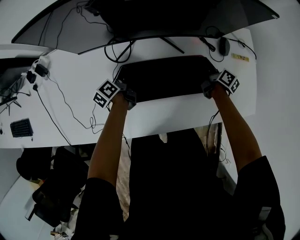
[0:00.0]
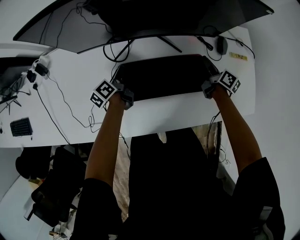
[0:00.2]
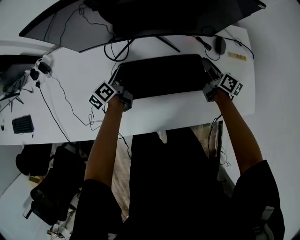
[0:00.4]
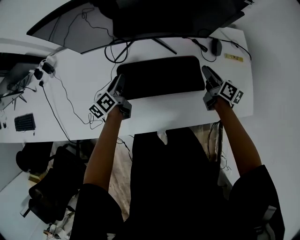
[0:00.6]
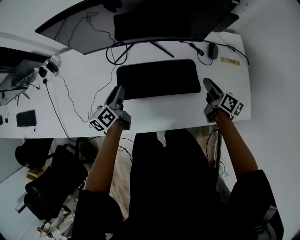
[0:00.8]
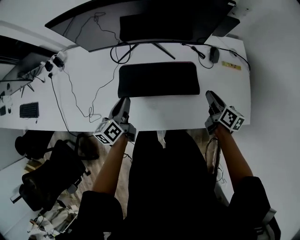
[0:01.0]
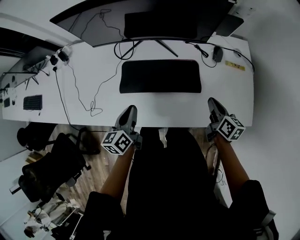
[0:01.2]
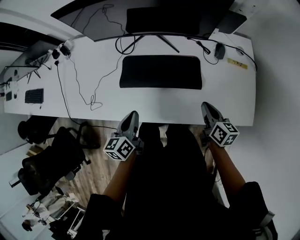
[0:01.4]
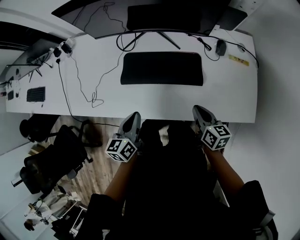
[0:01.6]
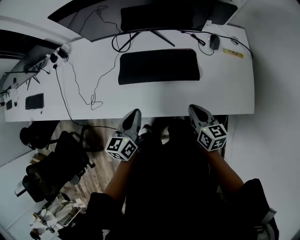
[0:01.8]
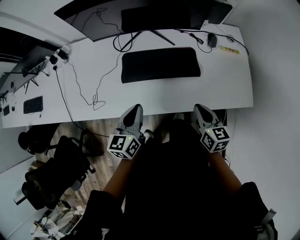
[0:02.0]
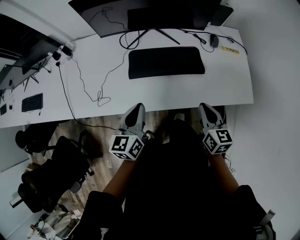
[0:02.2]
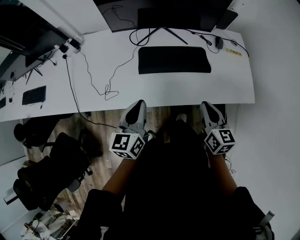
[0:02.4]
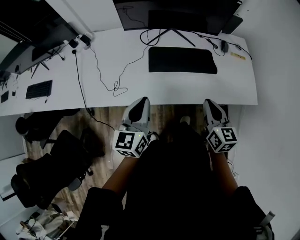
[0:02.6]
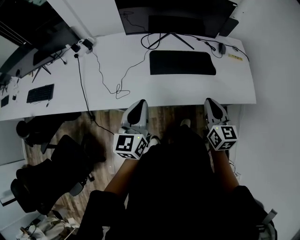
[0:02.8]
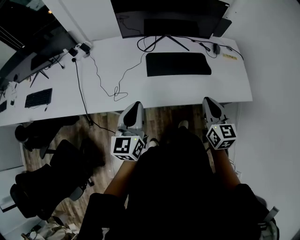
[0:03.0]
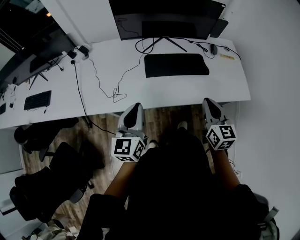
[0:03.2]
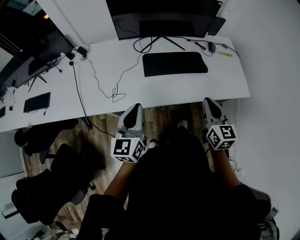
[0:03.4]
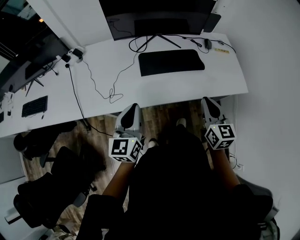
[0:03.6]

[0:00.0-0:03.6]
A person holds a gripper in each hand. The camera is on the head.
0:00.0 to 0:01.8: The right gripper heads backward and upward, covering some 35 cm, and changes its angle by about 40 degrees, while the left gripper shifts approximately 40 cm backward, upward and to the right, changes its angle by some 40 degrees, and closes up.
0:01.8 to 0:03.6: The left gripper is displaced to the left, backward and upward by some 25 cm, and rotates approximately 20 degrees, while the right gripper moves backward, upward and to the left, about 25 cm, and changes its angle by about 30 degrees.

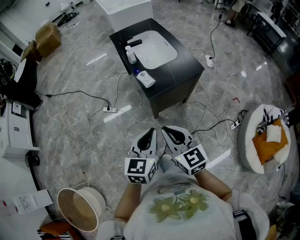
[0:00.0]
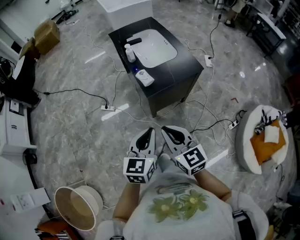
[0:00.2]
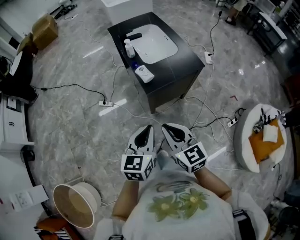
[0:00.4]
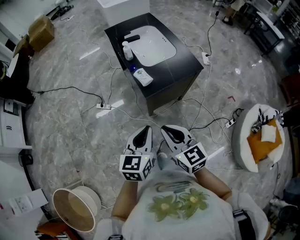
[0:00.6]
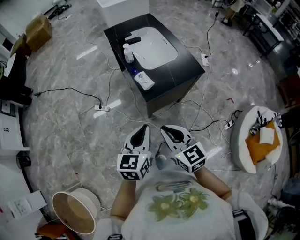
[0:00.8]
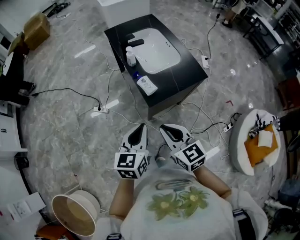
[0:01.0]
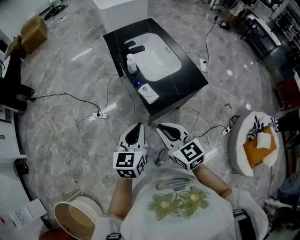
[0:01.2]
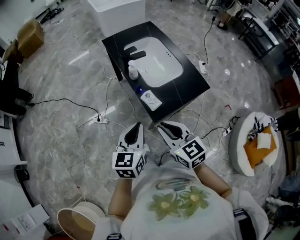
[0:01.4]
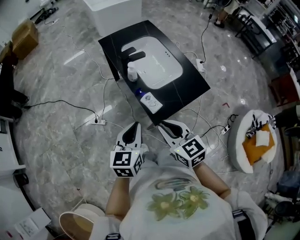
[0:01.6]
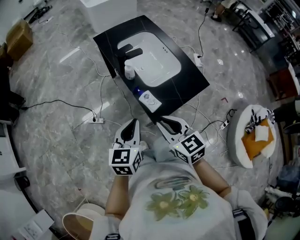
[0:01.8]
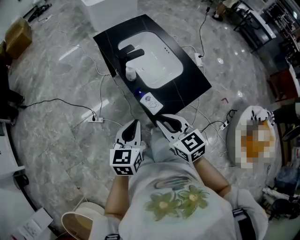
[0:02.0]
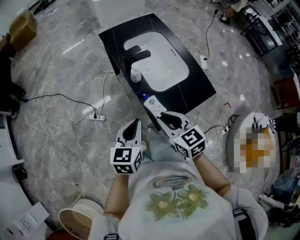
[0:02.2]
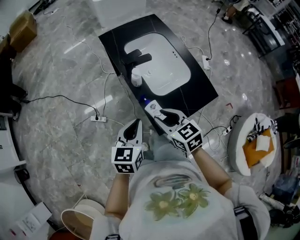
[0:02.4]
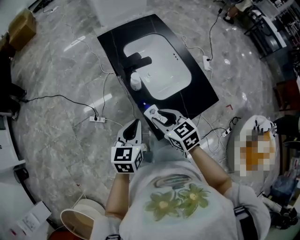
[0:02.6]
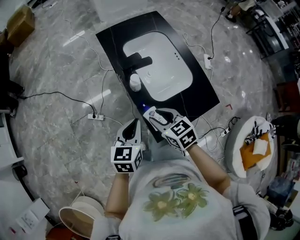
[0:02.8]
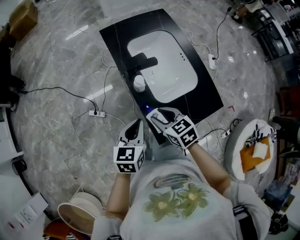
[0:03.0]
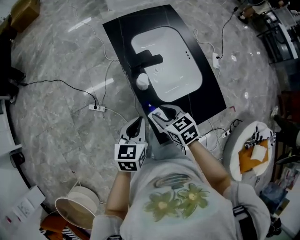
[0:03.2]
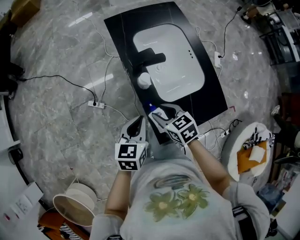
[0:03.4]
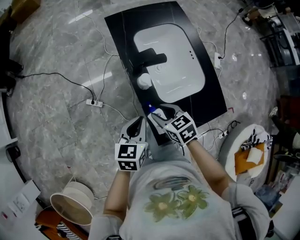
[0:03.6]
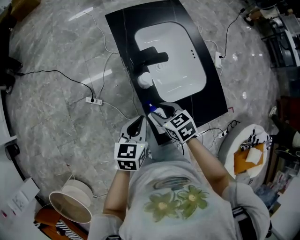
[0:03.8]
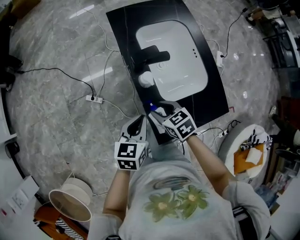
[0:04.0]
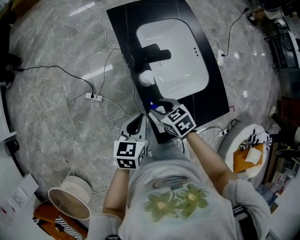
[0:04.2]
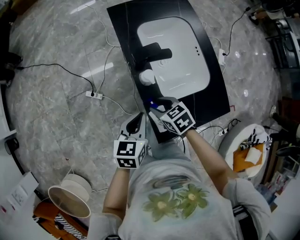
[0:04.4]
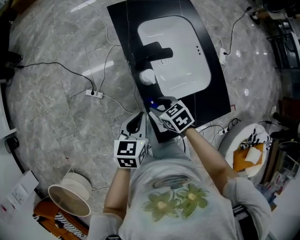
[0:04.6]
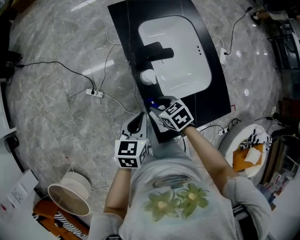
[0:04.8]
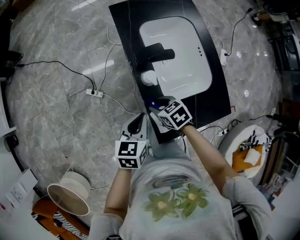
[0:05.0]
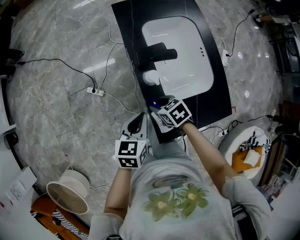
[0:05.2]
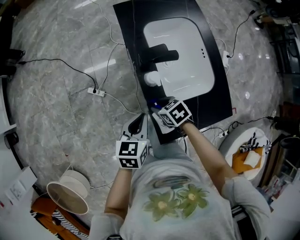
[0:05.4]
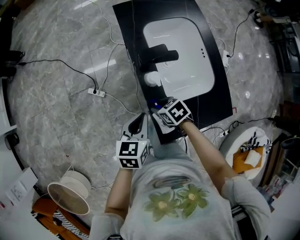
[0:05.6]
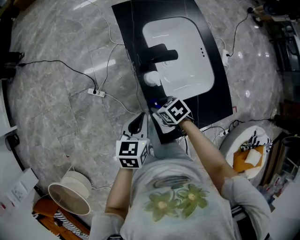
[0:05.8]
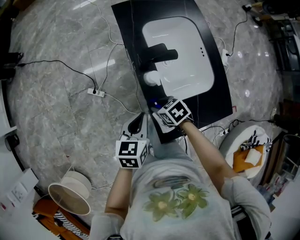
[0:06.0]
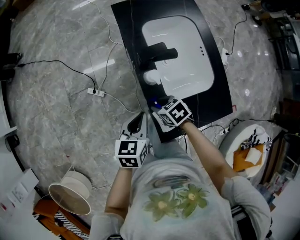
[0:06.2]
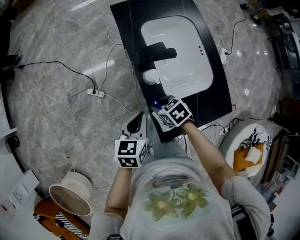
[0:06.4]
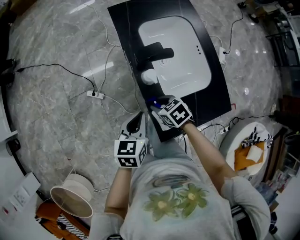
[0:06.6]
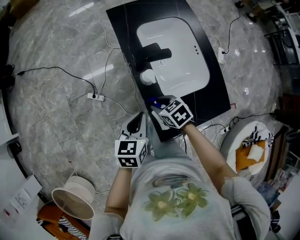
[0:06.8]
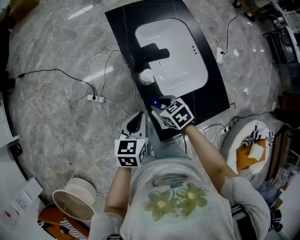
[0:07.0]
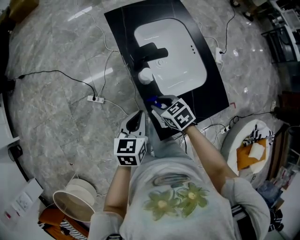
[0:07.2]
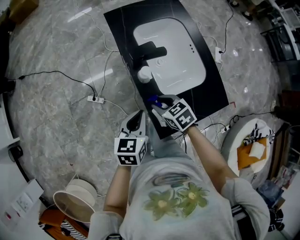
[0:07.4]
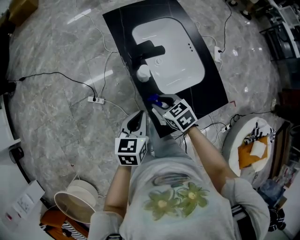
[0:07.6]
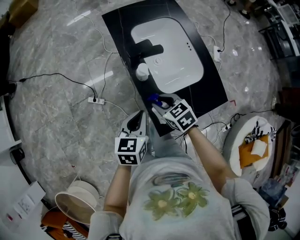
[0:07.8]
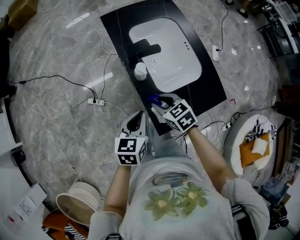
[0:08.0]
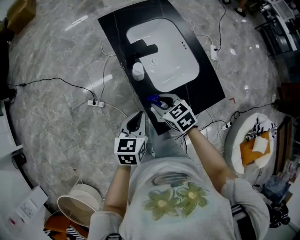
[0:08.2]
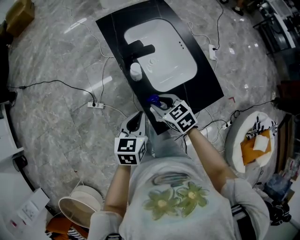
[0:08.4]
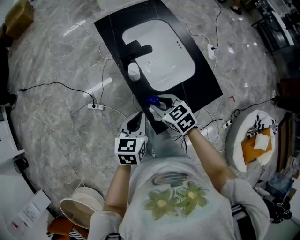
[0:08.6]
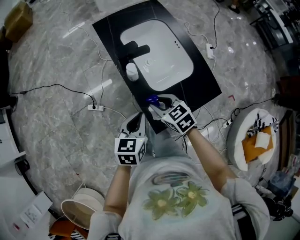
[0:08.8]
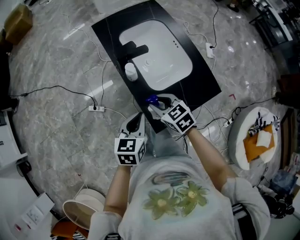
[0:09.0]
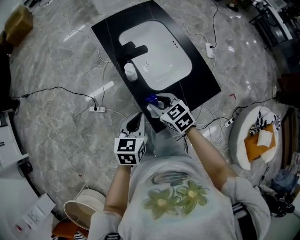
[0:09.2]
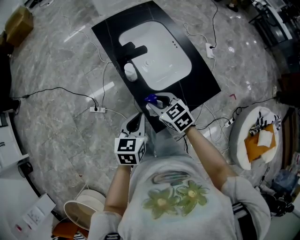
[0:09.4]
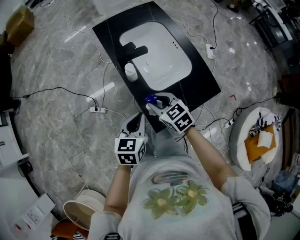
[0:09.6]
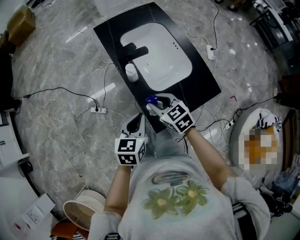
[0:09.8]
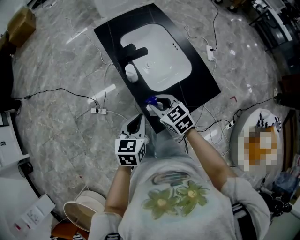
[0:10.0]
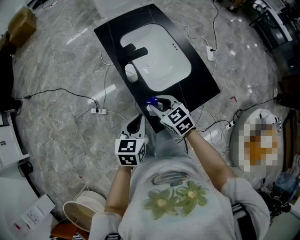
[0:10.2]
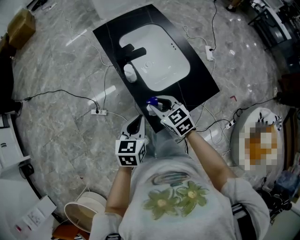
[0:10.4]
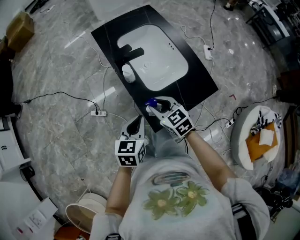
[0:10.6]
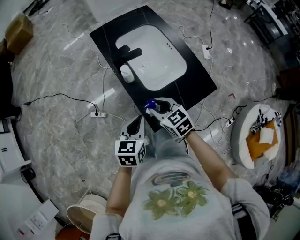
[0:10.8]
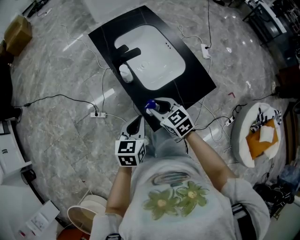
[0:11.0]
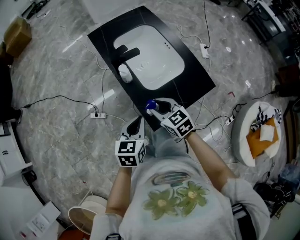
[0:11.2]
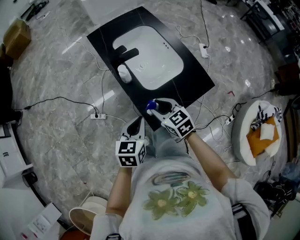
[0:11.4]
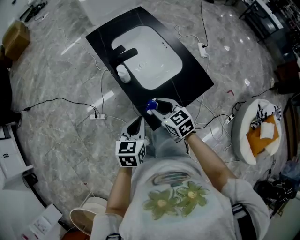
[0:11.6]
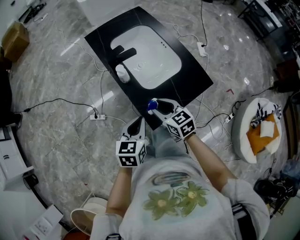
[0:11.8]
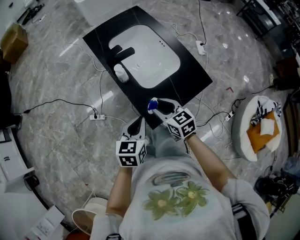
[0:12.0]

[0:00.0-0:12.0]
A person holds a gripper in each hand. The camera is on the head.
0:00.0 to 0:01.6: The right gripper heads forward, covering roughly 30 cm. The left gripper is displaced forward and to the left by some 35 cm.
0:01.6 to 0:03.0: Both grippers travel together forward and downward, approximately 25 cm. The right gripper rotates about 20 degrees, and opens.
0:03.0 to 0:04.4: The left gripper is displaced downward by some 5 cm. Meanwhile the right gripper heads downward and forward, covering approximately 10 cm.
0:04.4 to 0:06.0: The grippers make only small movements.
0:06.0 to 0:07.6: The right gripper goes roughly 10 cm upward, while the left gripper ends up roughly 5 cm from where it was.
0:07.6 to 0:09.0: The right gripper moves approximately 5 cm. Meanwhile the left gripper goes roughly 5 cm backward.
0:09.0 to 0:10.4: There are only small adjustments of the grippers.
0:10.4 to 0:12.0: The right gripper ends up about 5 cm from where it was.

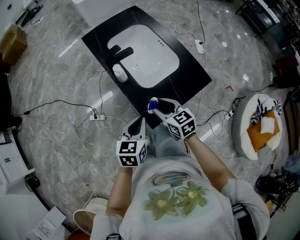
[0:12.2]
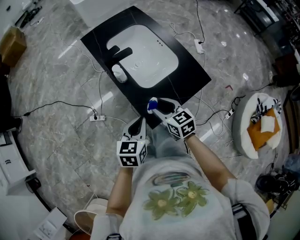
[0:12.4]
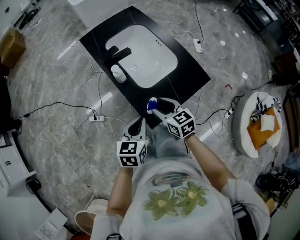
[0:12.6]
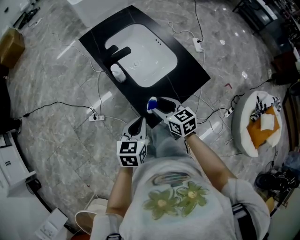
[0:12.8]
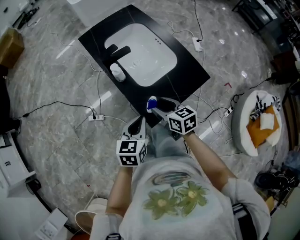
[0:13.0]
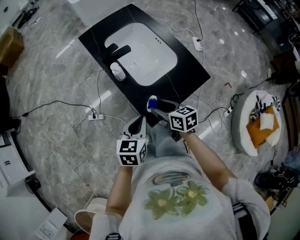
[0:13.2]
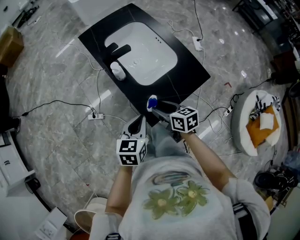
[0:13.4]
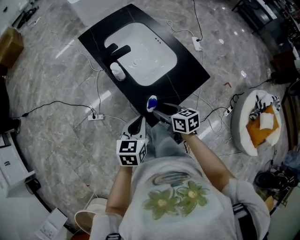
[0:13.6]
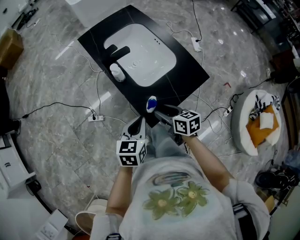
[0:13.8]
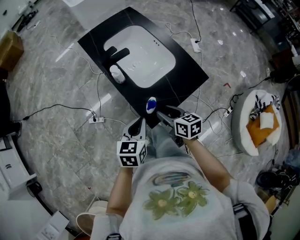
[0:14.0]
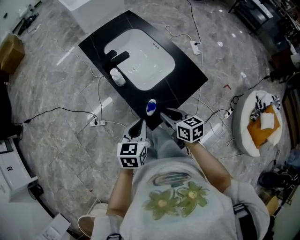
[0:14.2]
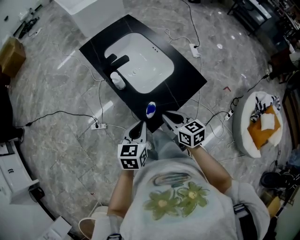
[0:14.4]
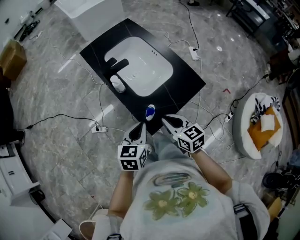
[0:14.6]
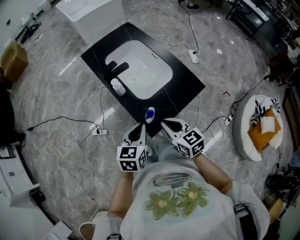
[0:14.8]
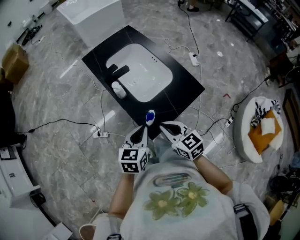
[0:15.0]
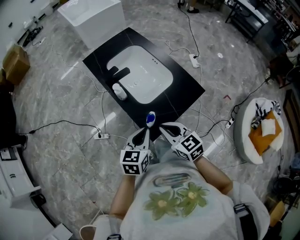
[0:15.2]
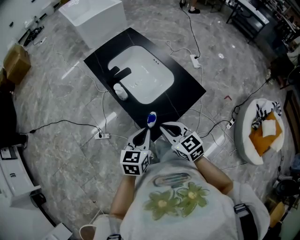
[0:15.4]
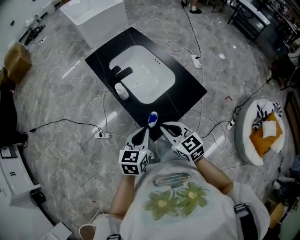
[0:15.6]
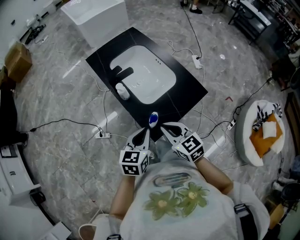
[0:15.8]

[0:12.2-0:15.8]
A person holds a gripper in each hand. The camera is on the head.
0:12.2 to 0:14.0: The right gripper changes place by some 5 cm, and rotates some 20 degrees.
0:14.0 to 0:15.8: The right gripper moves upward, approximately 10 cm, swivels roughly 30 degrees, and closes its fingers. Meanwhile the left gripper ends up approximately 5 cm from where it was.

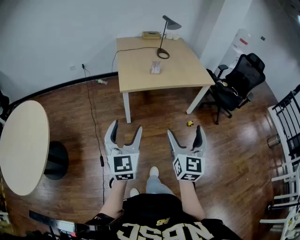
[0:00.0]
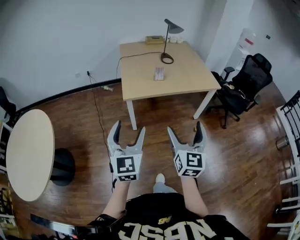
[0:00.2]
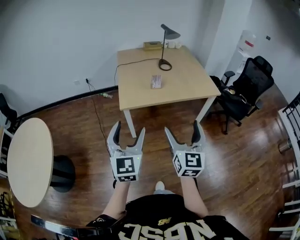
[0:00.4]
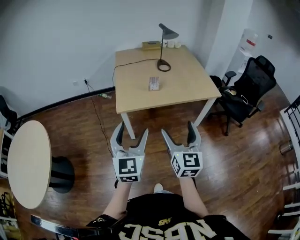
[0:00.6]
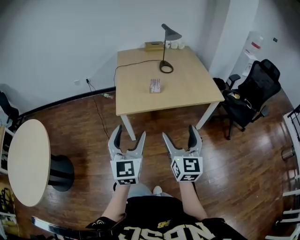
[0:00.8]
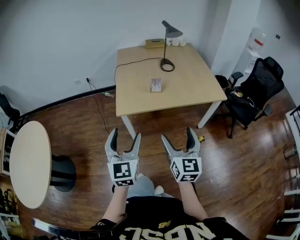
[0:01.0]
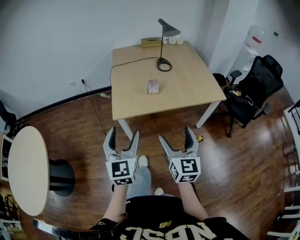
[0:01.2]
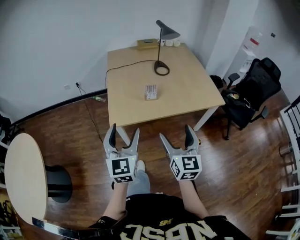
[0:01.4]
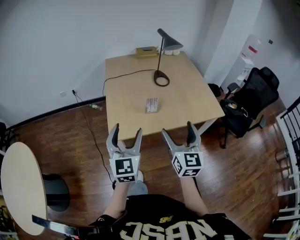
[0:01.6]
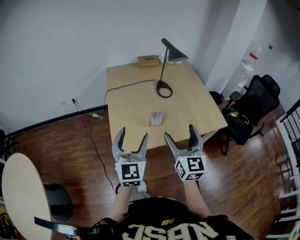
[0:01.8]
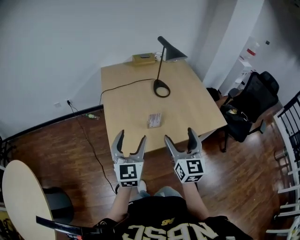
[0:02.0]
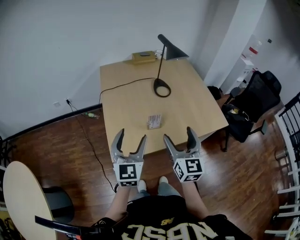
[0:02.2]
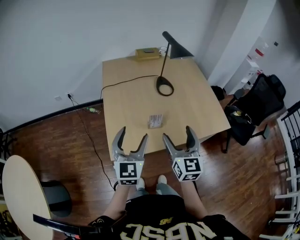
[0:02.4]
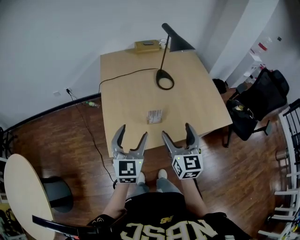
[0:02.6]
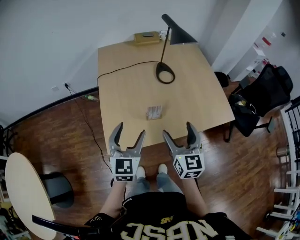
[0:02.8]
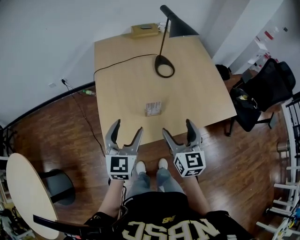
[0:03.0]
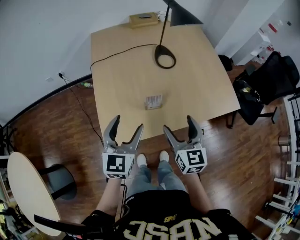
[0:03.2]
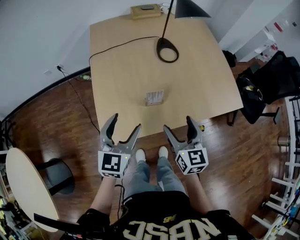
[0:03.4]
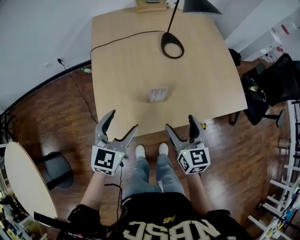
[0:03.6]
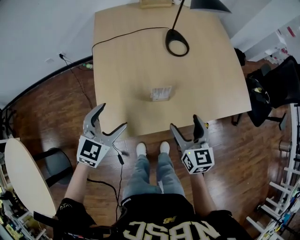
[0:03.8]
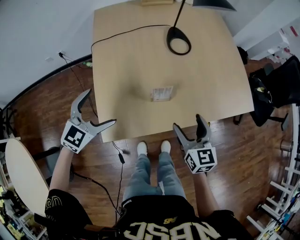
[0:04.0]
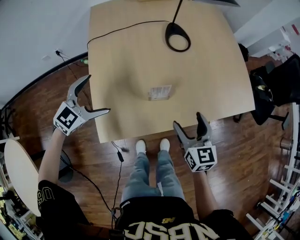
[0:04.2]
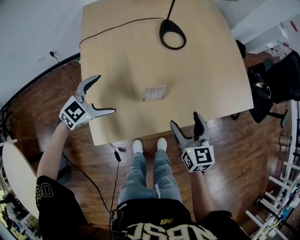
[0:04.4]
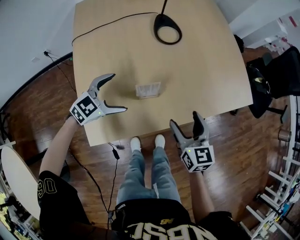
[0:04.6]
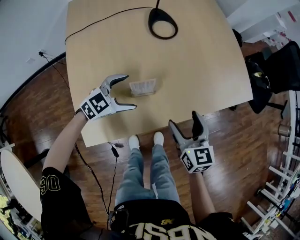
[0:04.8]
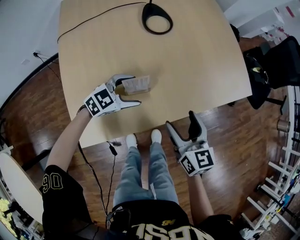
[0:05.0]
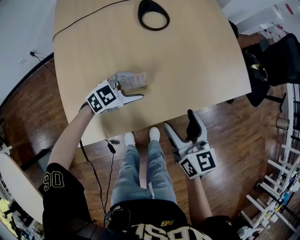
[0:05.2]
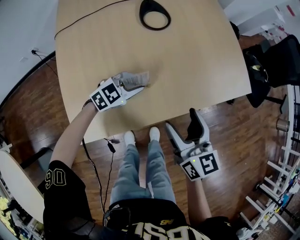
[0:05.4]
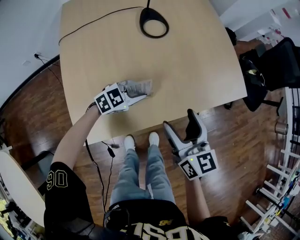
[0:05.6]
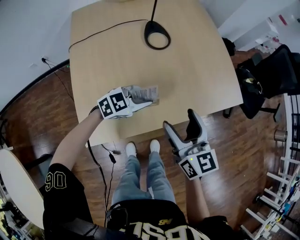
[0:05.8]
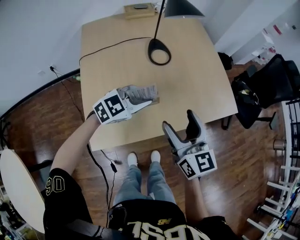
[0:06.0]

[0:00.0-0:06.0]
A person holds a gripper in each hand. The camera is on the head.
0:00.0 to 0:01.6: The two grippers travel together, forward, roughly 40 cm.
0:01.6 to 0:03.0: Both grippers travel together forward and downward, some 20 cm.
0:03.0 to 0:04.4: The right gripper moves downward, about 15 cm. Meanwhile the left gripper shifts roughly 20 cm downward and forward, turns by about 50 degrees, and opens.
0:04.4 to 0:06.0: The left gripper is displaced to the right and upward by some 20 cm, and closes its fingers. Meanwhile the right gripper travels upward by approximately 15 cm.